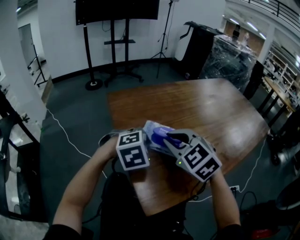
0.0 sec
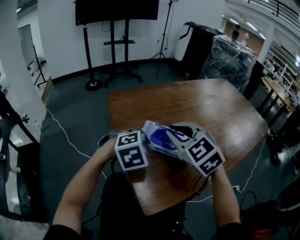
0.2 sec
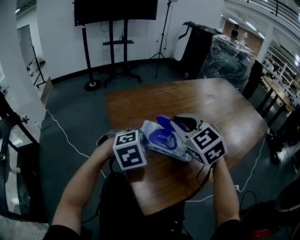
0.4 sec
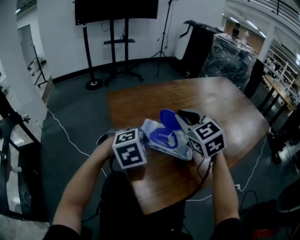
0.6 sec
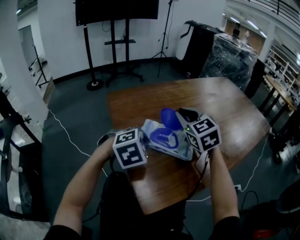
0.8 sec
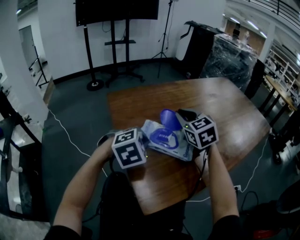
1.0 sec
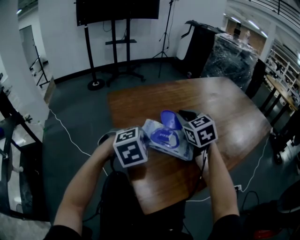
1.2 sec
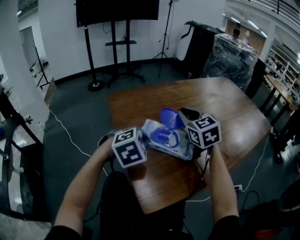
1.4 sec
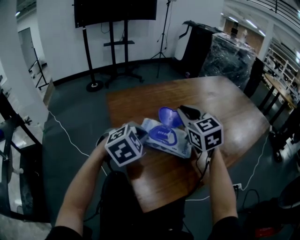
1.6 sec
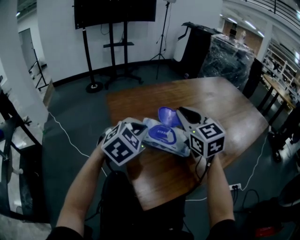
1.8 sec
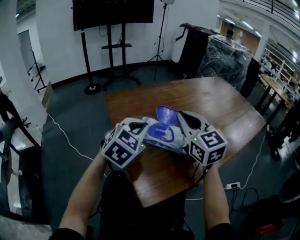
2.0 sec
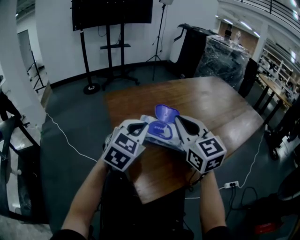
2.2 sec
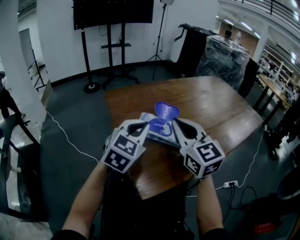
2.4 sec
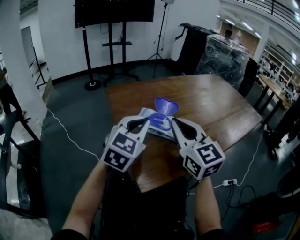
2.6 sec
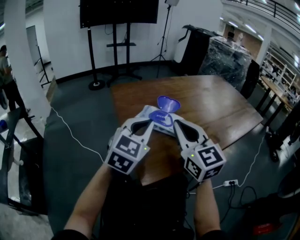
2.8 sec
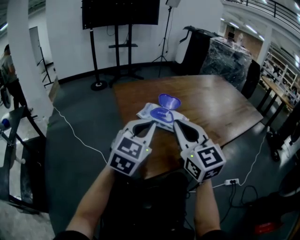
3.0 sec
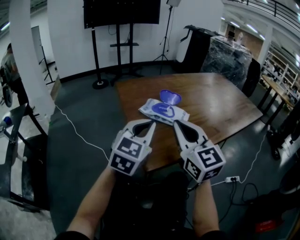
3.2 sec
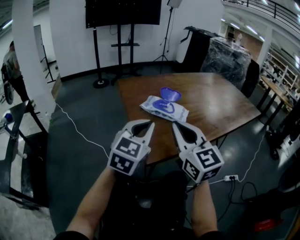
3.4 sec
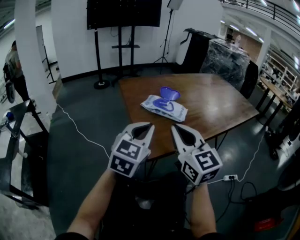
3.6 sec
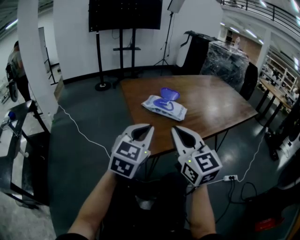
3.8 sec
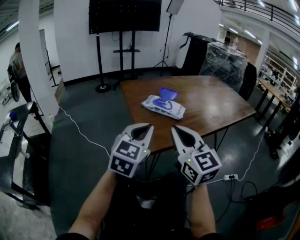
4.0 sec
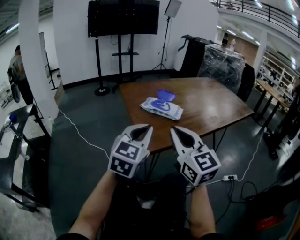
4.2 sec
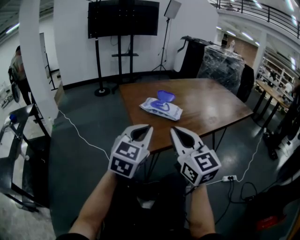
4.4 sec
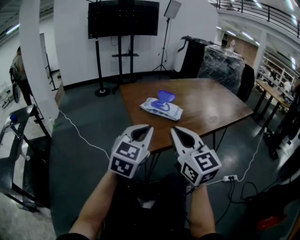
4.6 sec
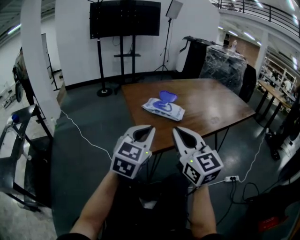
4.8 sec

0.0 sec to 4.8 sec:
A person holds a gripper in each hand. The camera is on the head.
0.0 sec to 1.6 sec: The right gripper heads forward and to the right, covering some 10 cm, and rotates approximately 30 degrees.
1.6 sec to 3.2 sec: The left gripper is displaced backward and upward by roughly 15 cm, and points its fingers roughly 30 degrees further upward; the right gripper moves backward, about 25 cm.
3.2 sec to 4.8 sec: Both grippers move backward, some 10 cm.

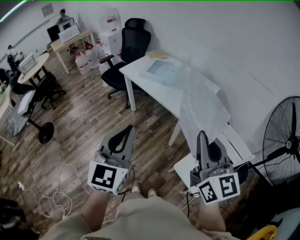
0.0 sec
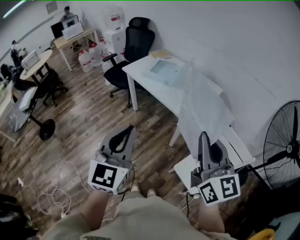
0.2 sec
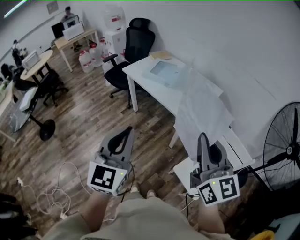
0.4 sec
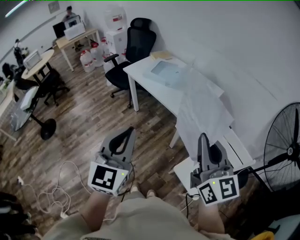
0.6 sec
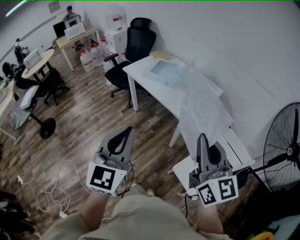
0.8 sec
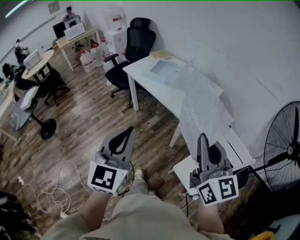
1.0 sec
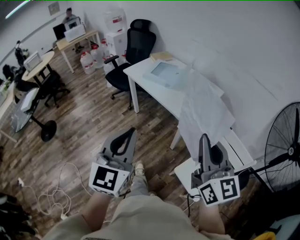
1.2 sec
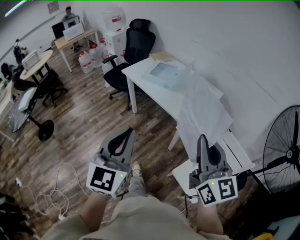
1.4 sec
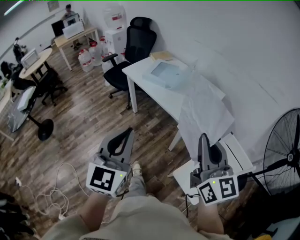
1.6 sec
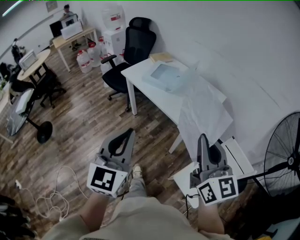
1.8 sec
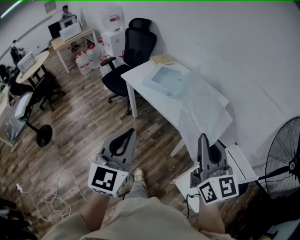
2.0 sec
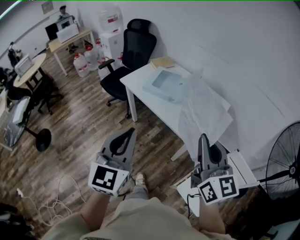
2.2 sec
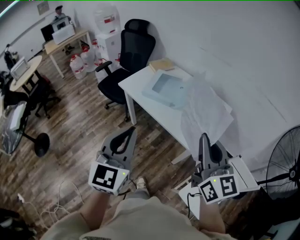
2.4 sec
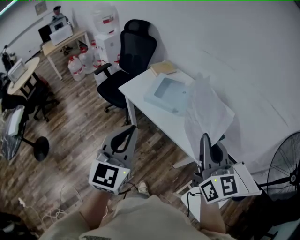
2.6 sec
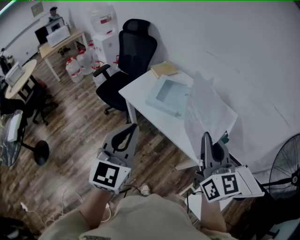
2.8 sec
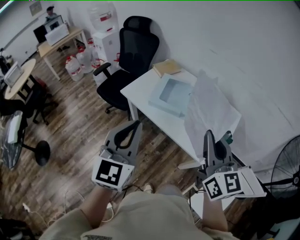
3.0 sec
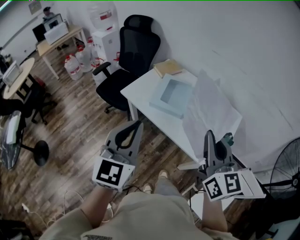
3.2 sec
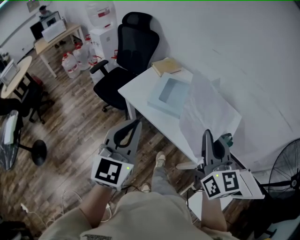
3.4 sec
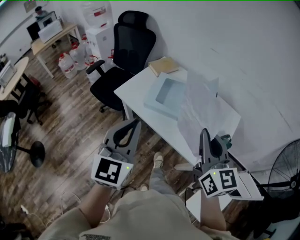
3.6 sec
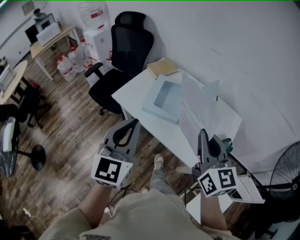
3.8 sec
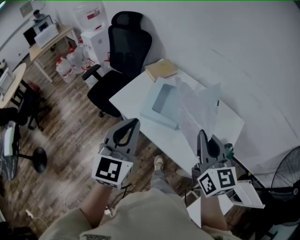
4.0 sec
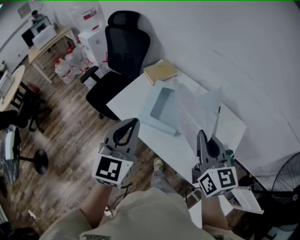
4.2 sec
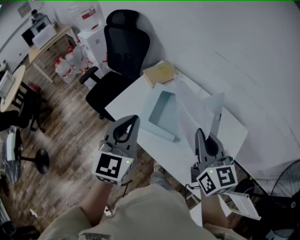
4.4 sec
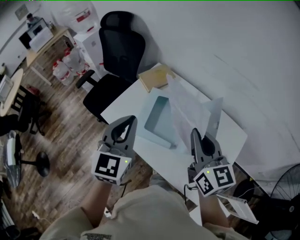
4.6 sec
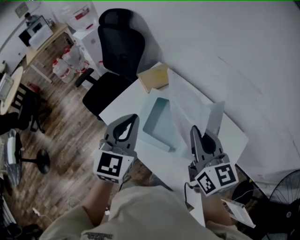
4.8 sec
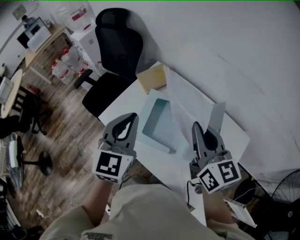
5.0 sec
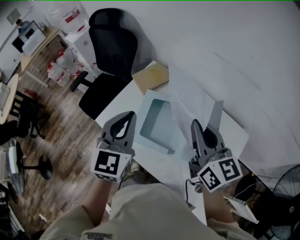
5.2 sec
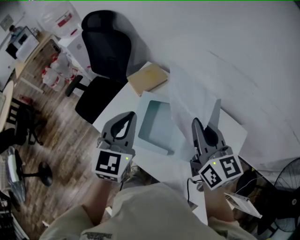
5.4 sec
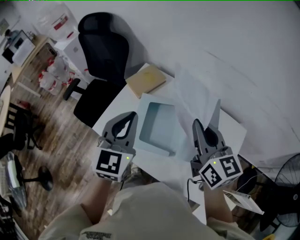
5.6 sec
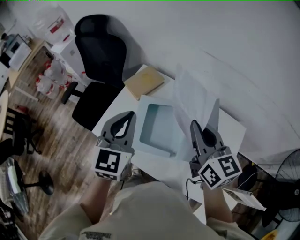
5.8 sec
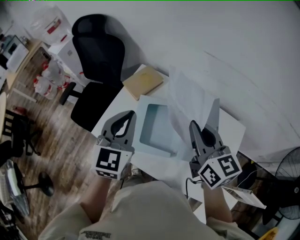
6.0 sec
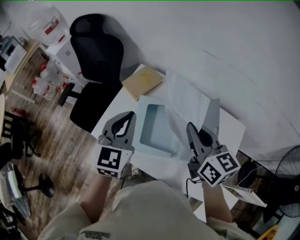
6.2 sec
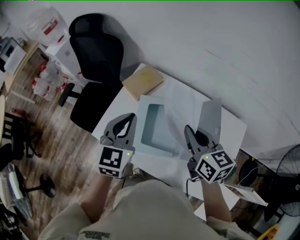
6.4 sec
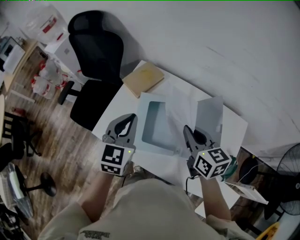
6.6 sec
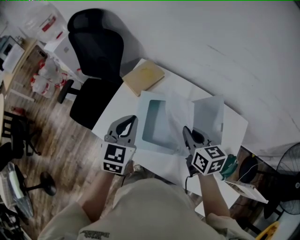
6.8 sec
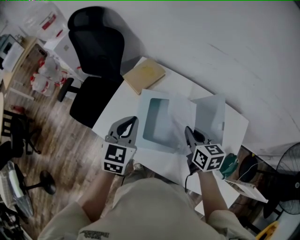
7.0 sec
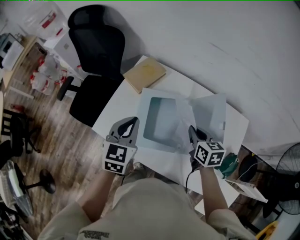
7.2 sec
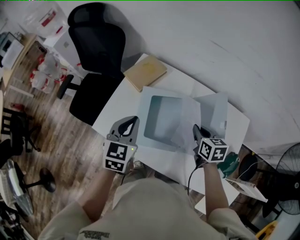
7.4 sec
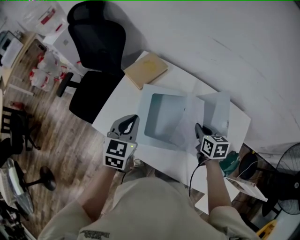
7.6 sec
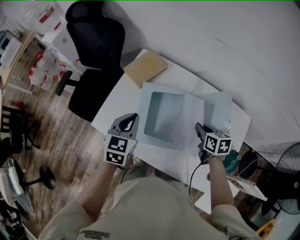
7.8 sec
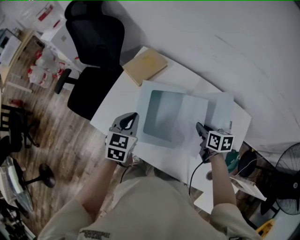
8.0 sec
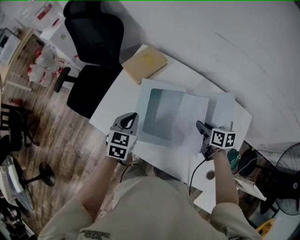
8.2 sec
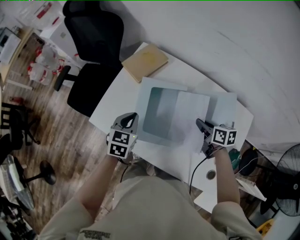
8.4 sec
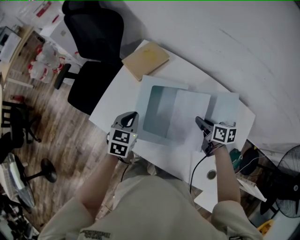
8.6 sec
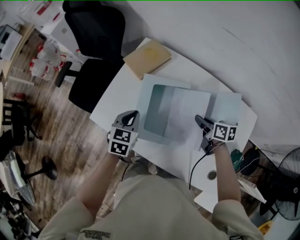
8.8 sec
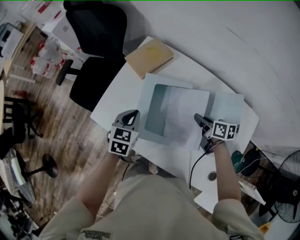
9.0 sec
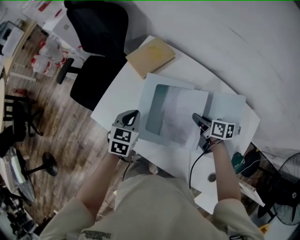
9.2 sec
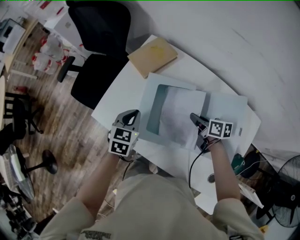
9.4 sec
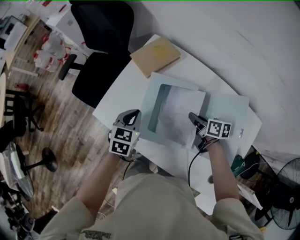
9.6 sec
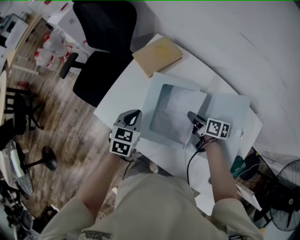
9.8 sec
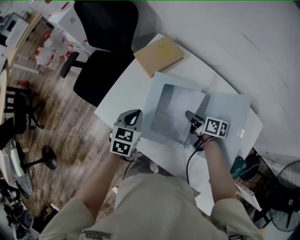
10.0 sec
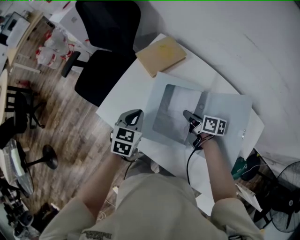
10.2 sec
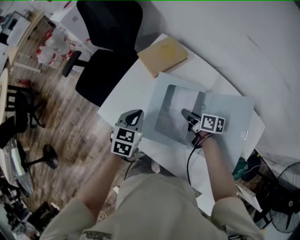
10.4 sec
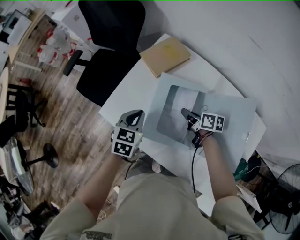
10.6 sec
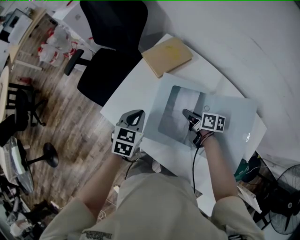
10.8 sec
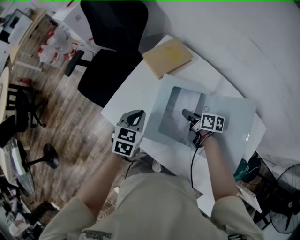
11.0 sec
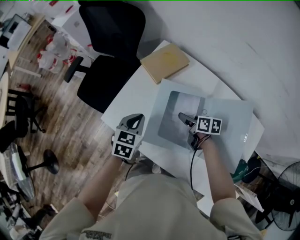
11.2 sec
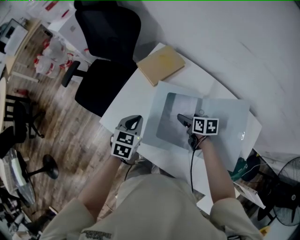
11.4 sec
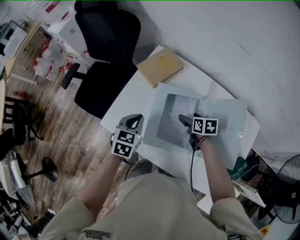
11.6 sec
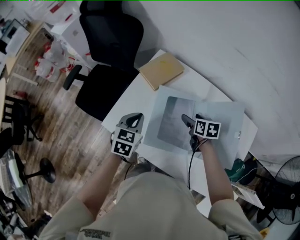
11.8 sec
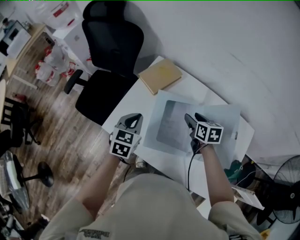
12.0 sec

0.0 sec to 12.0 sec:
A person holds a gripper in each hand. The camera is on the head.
0.0 sec to 1.6 sec: The right gripper moves forward, about 5 cm.
1.6 sec to 3.0 sec: The right gripper heads forward and to the left, covering some 35 cm. Meanwhile the left gripper travels forward by approximately 35 cm.
3.0 sec to 4.4 sec: The grippers both shift forward by approximately 25 cm.
4.4 sec to 6.0 sec: The two grippers go approximately 15 cm forward.
6.0 sec to 7.6 sec: The left gripper travels downward by some 15 cm. The right gripper goes roughly 25 cm downward, and points its fingers some 30 degrees further downward.
7.6 sec to 9.0 sec: Both grippers travel together downward, some 10 cm. The right gripper swivels approximately 30 degrees.
9.0 sec to 10.4 sec: The right gripper travels to the left and forward by roughly 10 cm.
10.4 sec to 12.0 sec: The two grippers go roughly 10 cm upward. The right gripper swivels some 40 degrees, and opens its fingers.

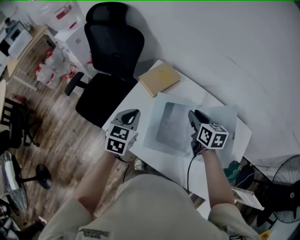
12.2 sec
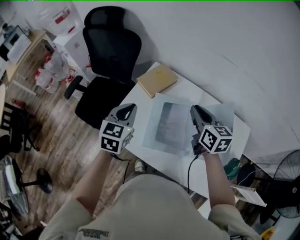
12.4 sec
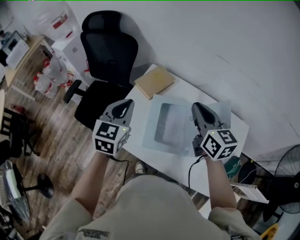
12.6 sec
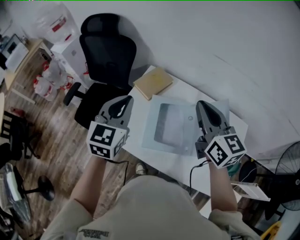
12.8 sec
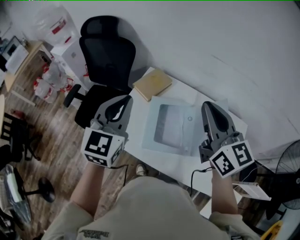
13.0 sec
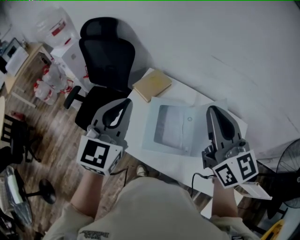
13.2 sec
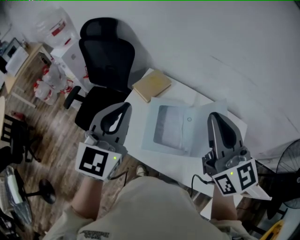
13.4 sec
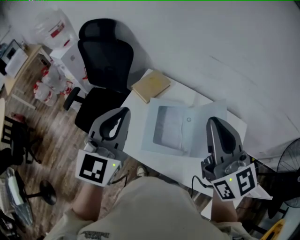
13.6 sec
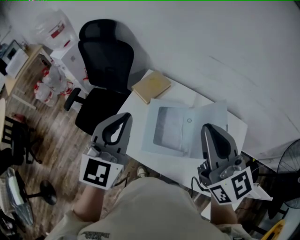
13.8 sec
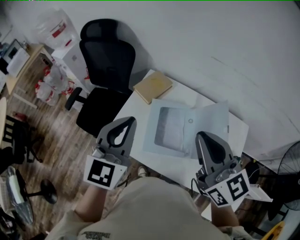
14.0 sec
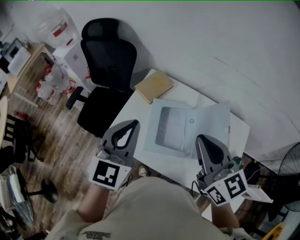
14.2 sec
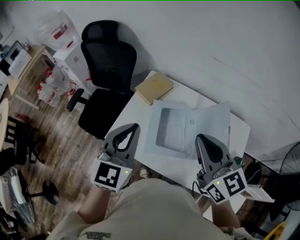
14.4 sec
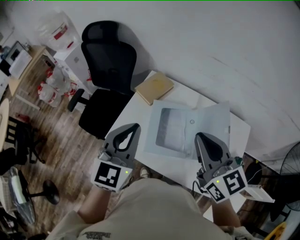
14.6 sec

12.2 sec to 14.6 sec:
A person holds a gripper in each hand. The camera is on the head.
12.2 sec to 13.4 sec: The right gripper is displaced upward and backward by approximately 30 cm, and points its fingers some 40 degrees further upward, while the left gripper goes approximately 25 cm upward, and swivels approximately 30 degrees.
13.4 sec to 14.6 sec: Both grippers travel together downward, approximately 5 cm.

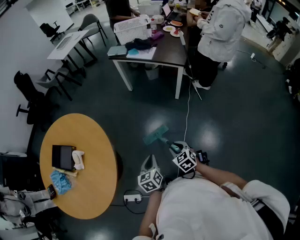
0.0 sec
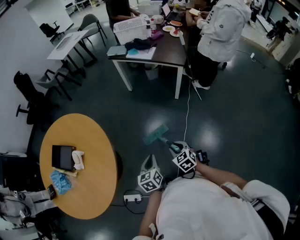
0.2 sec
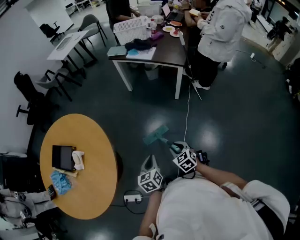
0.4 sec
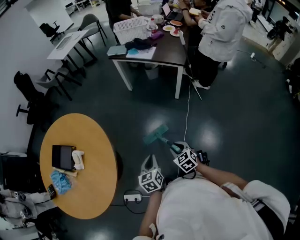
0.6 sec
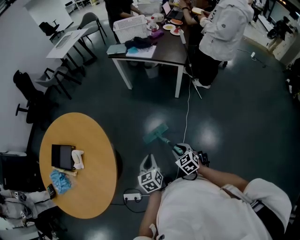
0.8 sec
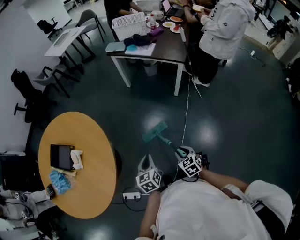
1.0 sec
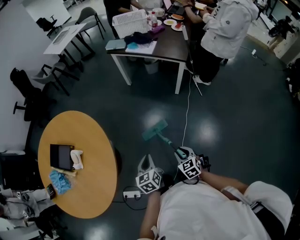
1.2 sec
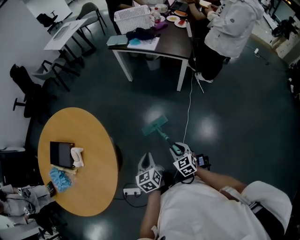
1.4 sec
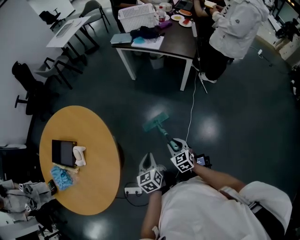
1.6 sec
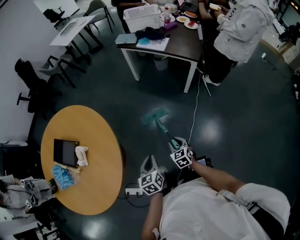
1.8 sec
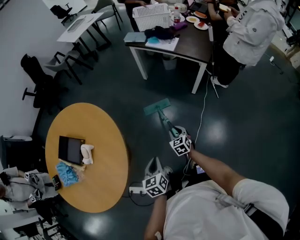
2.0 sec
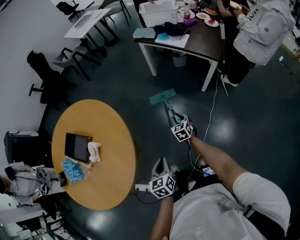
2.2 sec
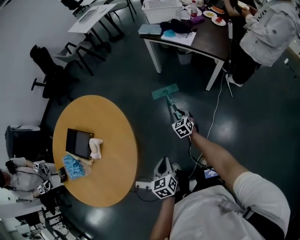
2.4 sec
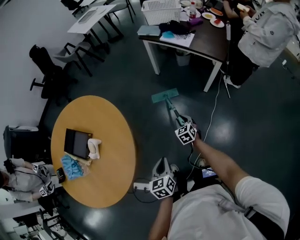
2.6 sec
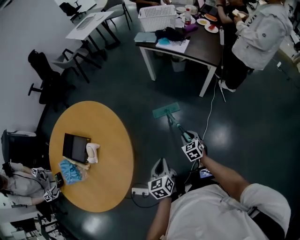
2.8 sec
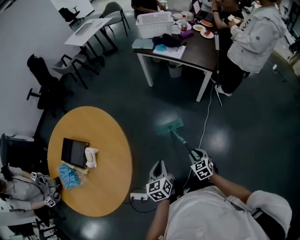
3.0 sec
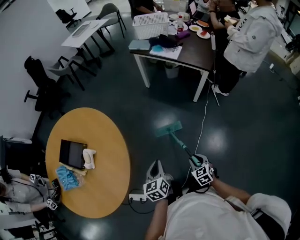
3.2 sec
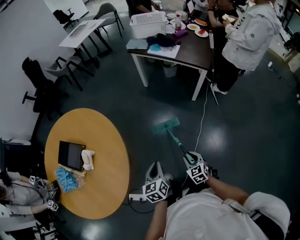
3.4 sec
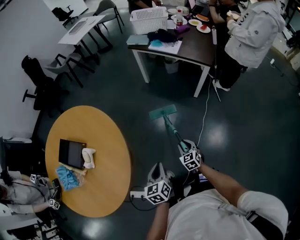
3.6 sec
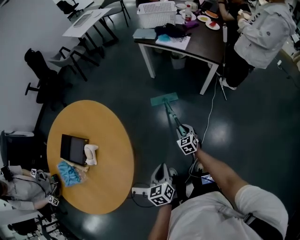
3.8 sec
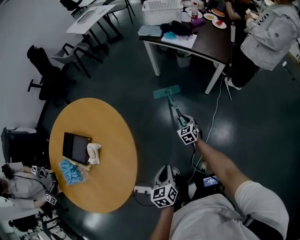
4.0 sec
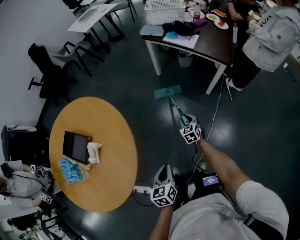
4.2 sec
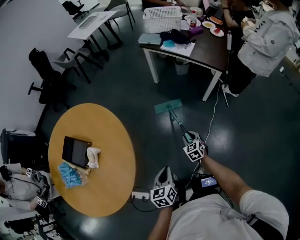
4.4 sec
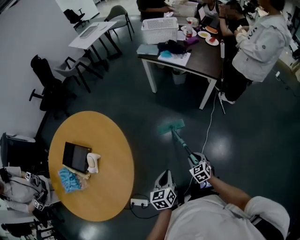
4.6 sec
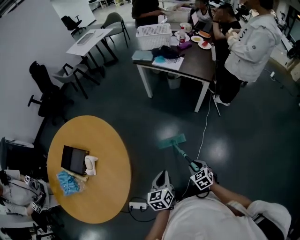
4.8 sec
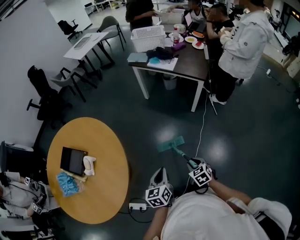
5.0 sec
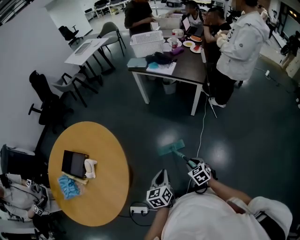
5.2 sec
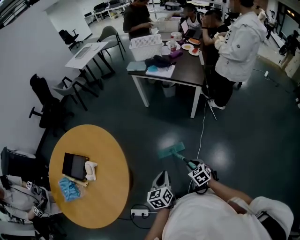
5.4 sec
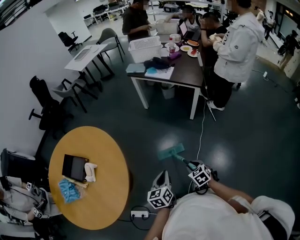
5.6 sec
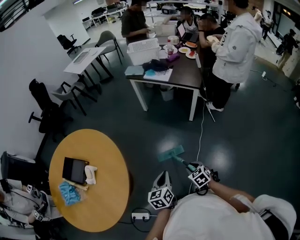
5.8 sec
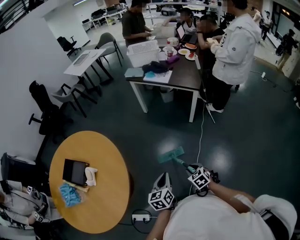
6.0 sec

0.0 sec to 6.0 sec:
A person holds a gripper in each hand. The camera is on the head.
0.0 sec to 1.6 sec: The right gripper moves roughly 5 cm. Meanwhile the left gripper moves approximately 5 cm.
1.6 sec to 3.0 sec: The right gripper moves roughly 25 cm forward and comes back.
3.0 sec to 4.4 sec: The right gripper shifts some 15 cm forward and downward.
4.4 sec to 6.0 sec: The left gripper is displaced to the right by roughly 5 cm. Meanwhile the right gripper heads backward and upward, covering about 20 cm.
